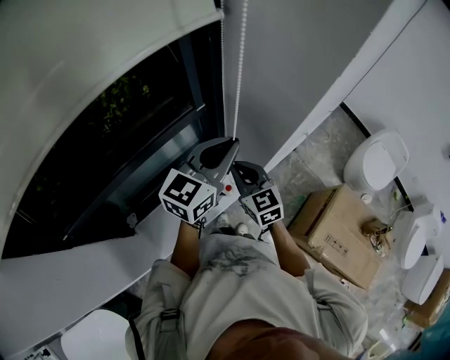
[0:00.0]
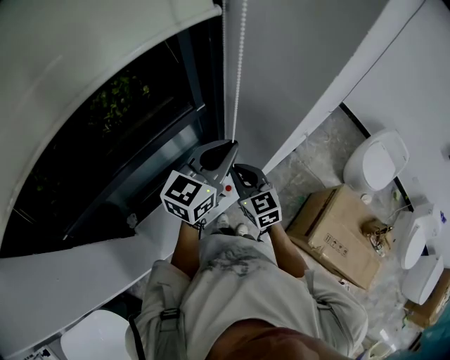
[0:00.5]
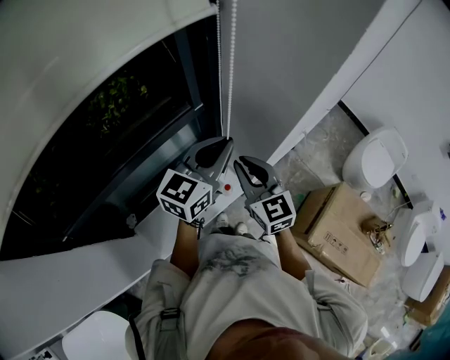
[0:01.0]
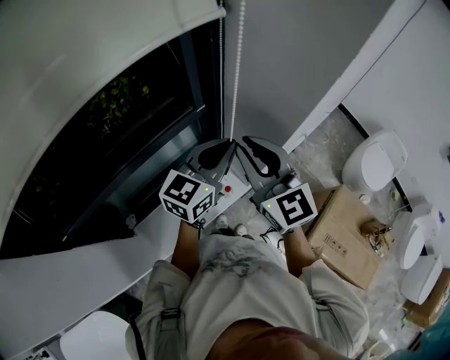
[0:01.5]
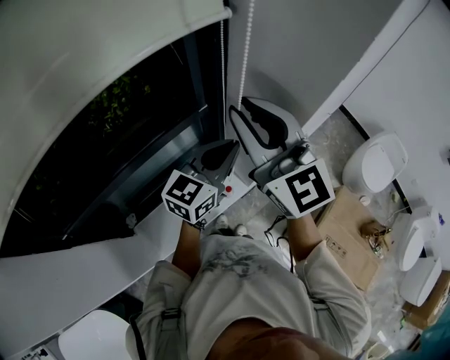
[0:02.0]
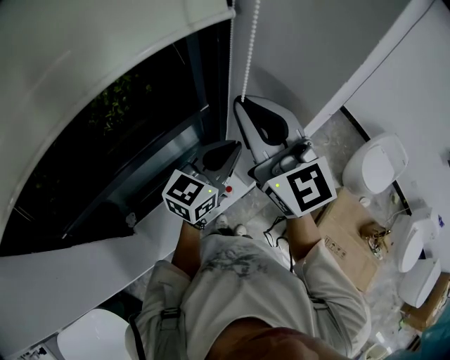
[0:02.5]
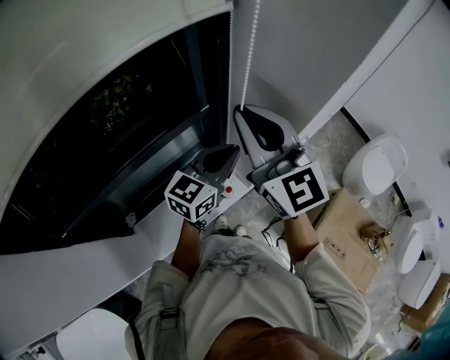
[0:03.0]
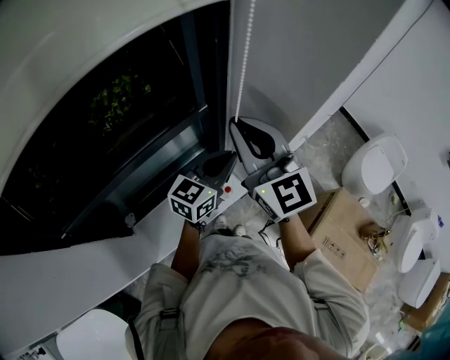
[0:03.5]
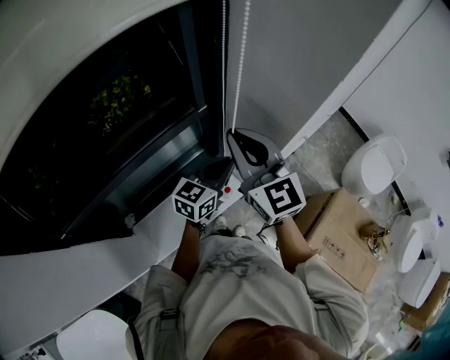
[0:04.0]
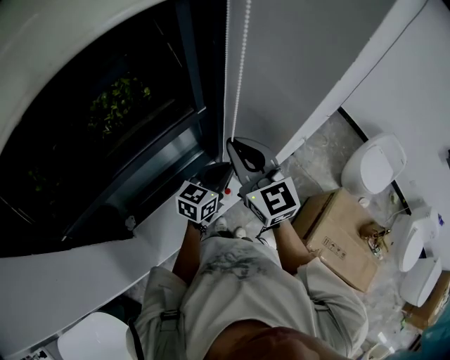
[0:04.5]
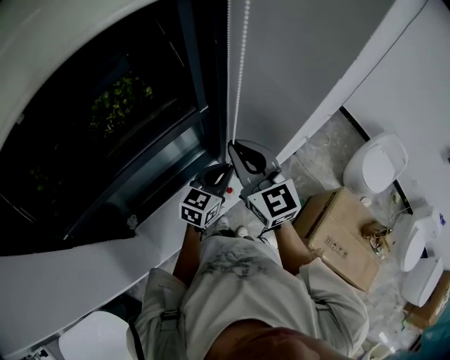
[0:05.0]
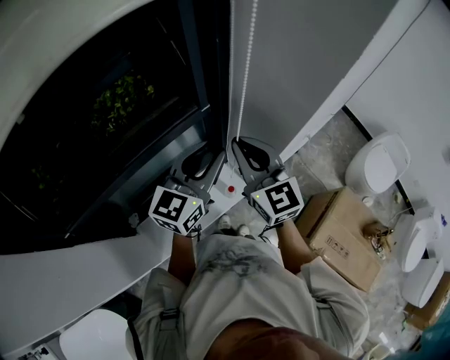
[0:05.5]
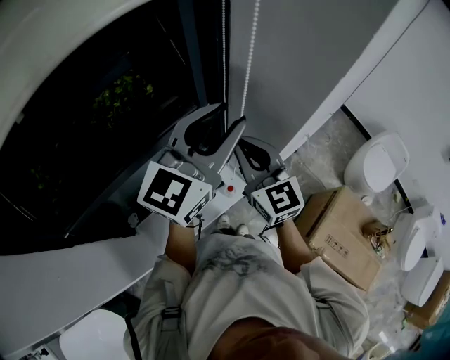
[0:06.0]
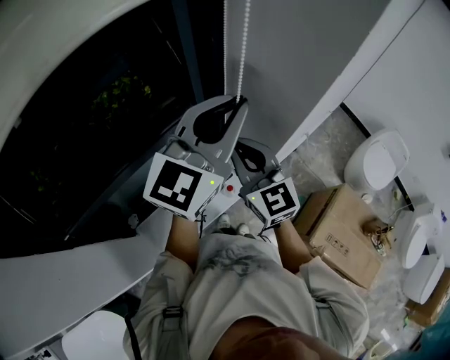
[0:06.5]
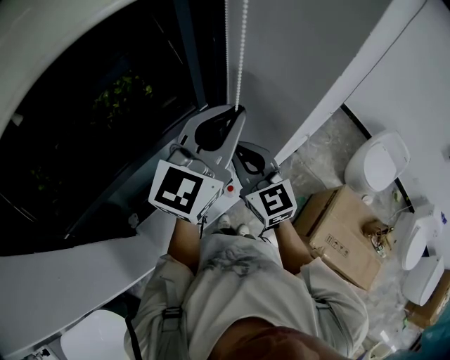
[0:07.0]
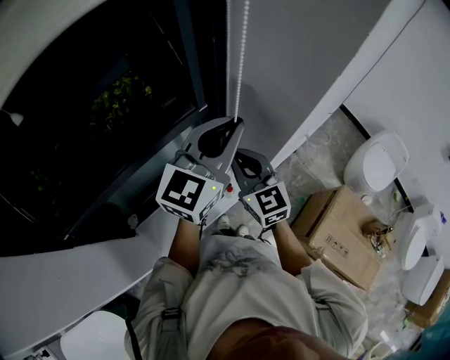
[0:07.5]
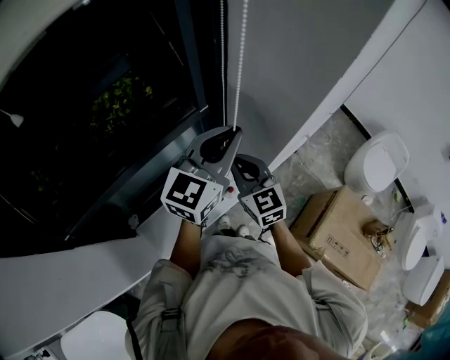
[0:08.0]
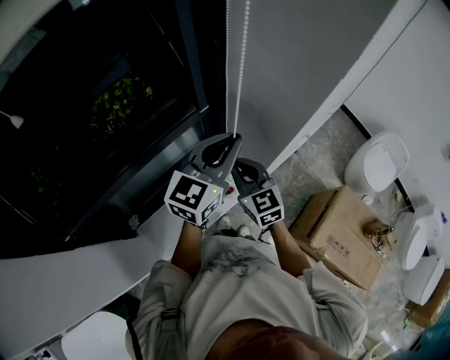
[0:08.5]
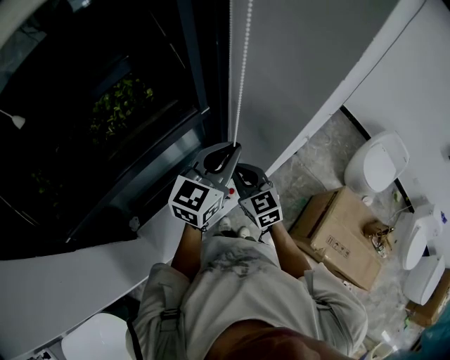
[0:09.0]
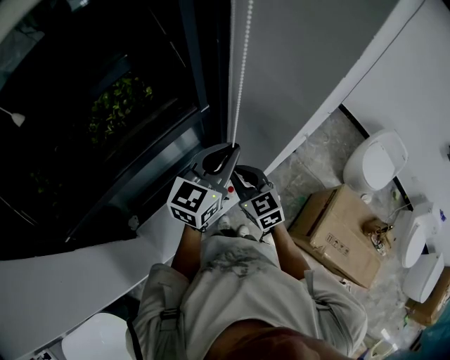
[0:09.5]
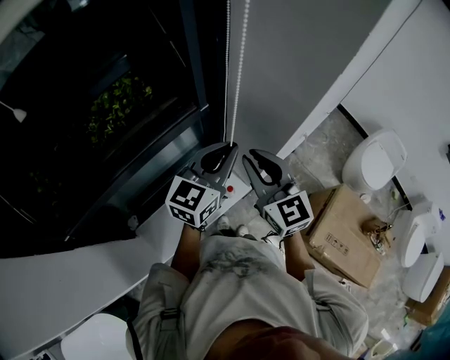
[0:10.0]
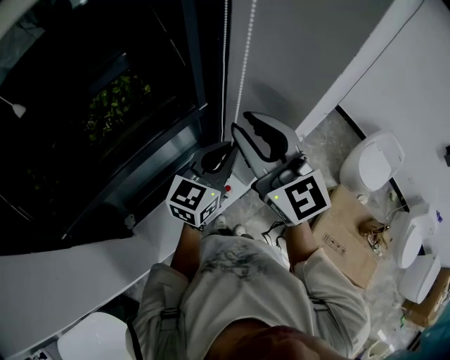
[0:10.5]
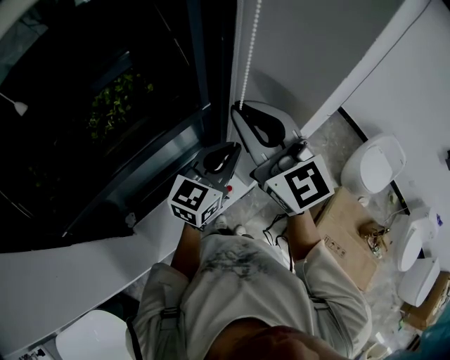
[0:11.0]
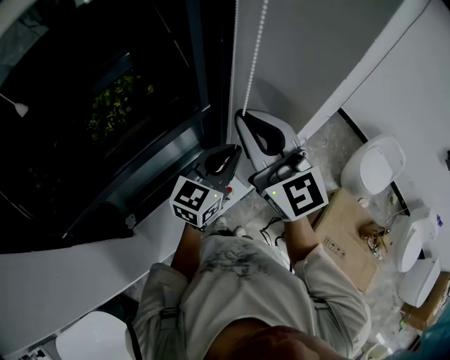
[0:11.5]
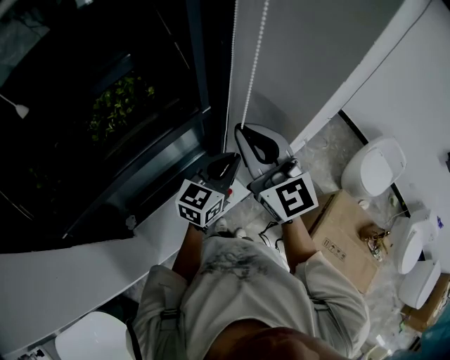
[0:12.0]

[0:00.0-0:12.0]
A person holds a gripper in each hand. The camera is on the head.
0:00.0 to 0:02.0: The right gripper travels upward by some 30 cm, and changes its angle by approximately 30 degrees.
0:02.0 to 0:04.0: The two grippers go roughly 10 cm downward.
0:04.0 to 0:06.0: The left gripper is displaced upward by about 25 cm, rotates about 30 degrees, and opens its fingers.
0:06.0 to 0:08.0: Both grippers travel together downward, some 10 cm. The left gripper closes its fingers.
0:08.0 to 0:10.0: The right gripper shifts about 5 cm upward. Meanwhile the left gripper is displaced downward by approximately 5 cm.
0:10.0 to 0:12.0: The right gripper goes some 10 cm upward; the left gripper goes some 5 cm downward.

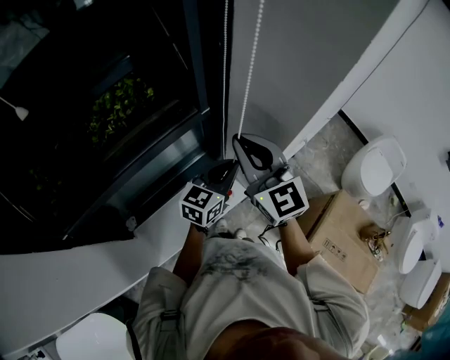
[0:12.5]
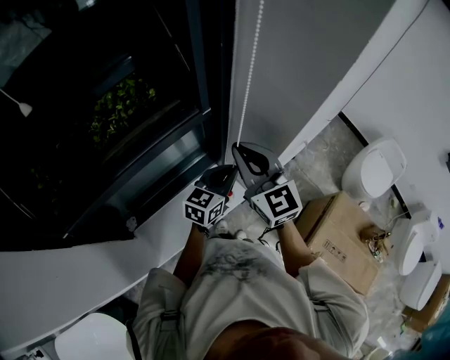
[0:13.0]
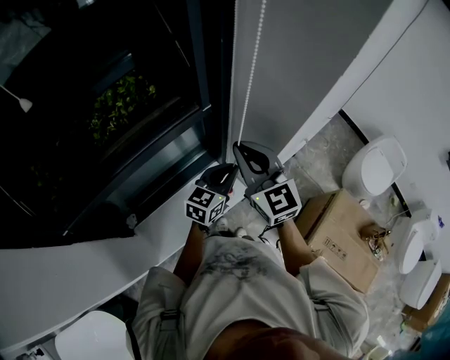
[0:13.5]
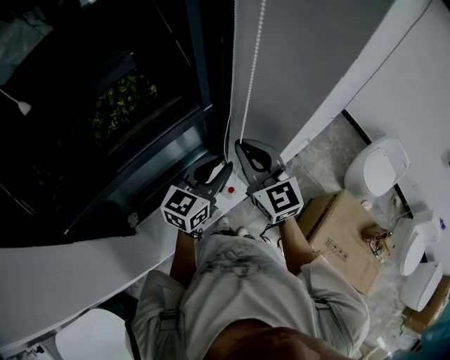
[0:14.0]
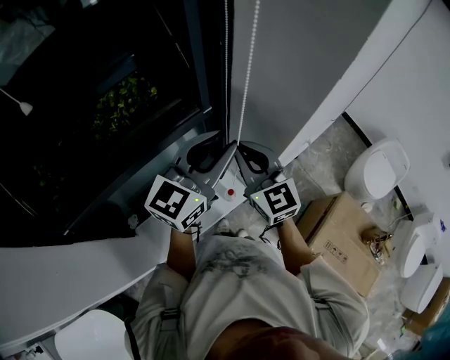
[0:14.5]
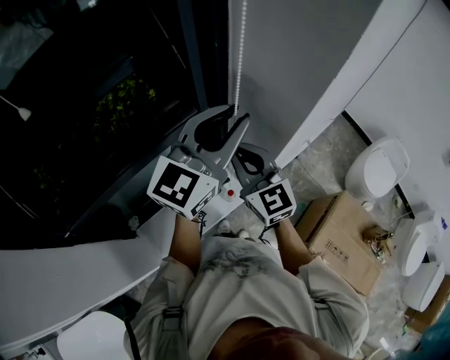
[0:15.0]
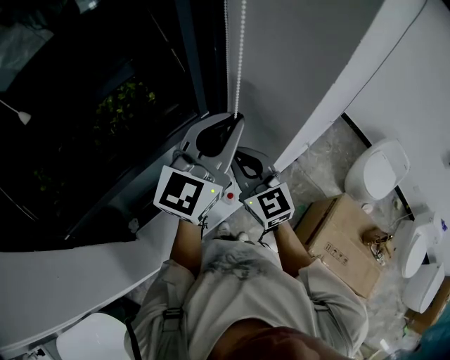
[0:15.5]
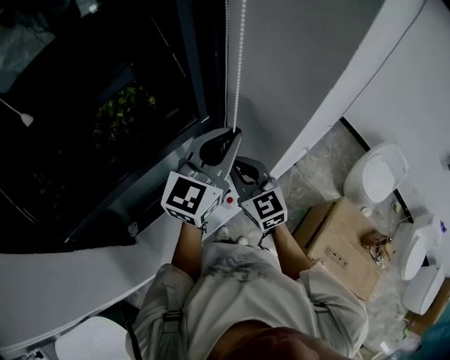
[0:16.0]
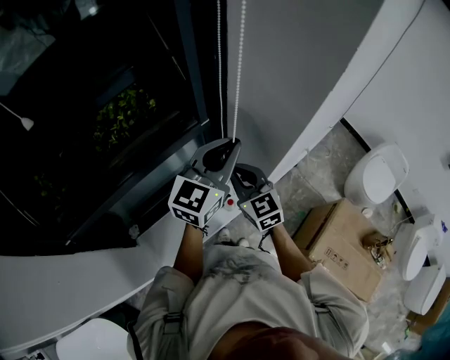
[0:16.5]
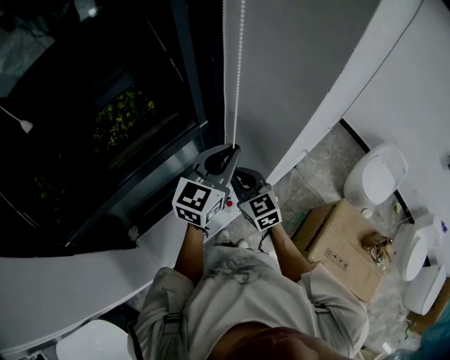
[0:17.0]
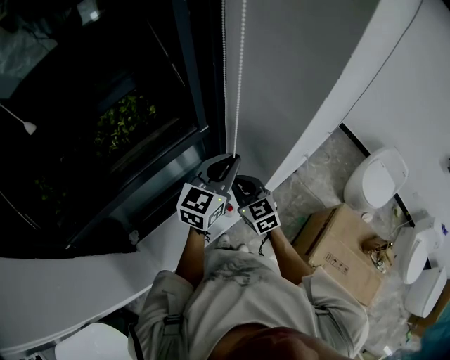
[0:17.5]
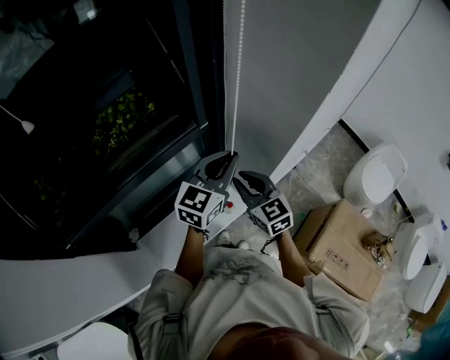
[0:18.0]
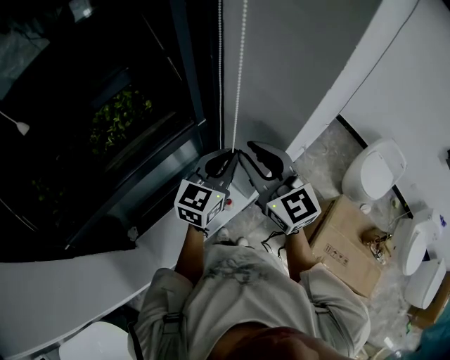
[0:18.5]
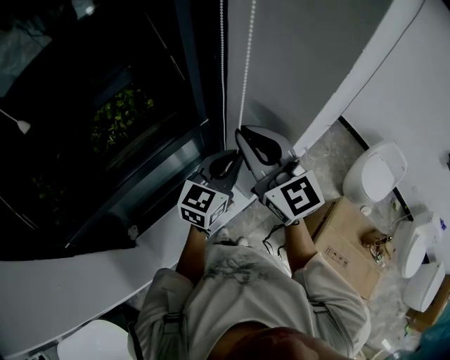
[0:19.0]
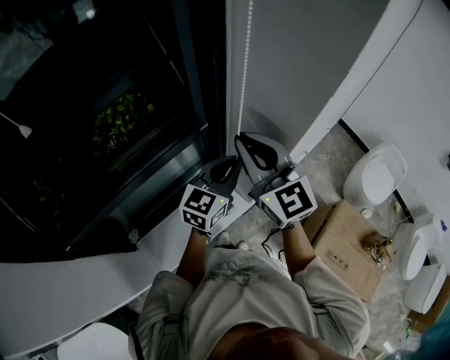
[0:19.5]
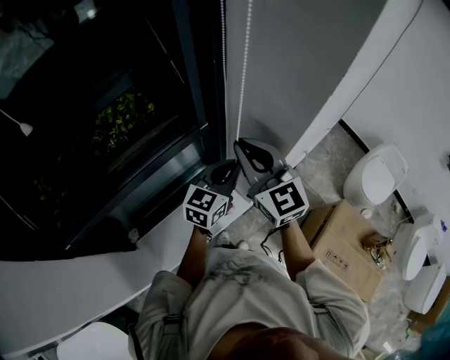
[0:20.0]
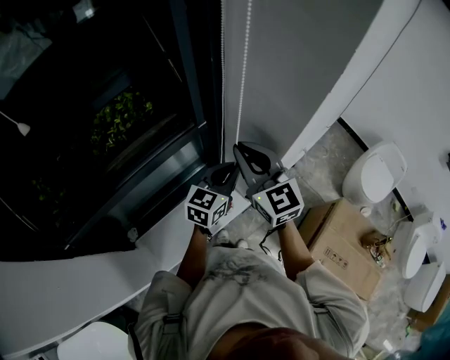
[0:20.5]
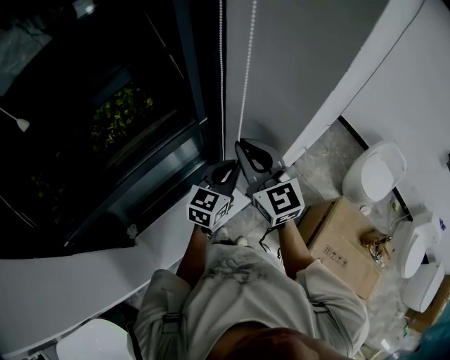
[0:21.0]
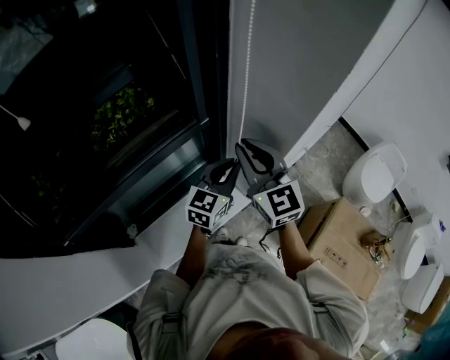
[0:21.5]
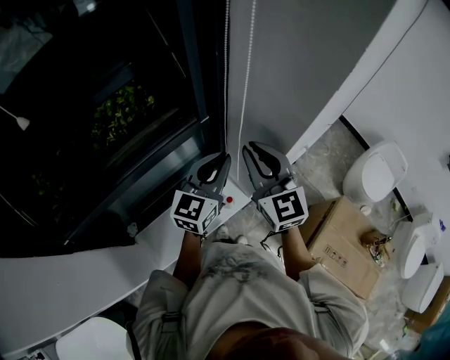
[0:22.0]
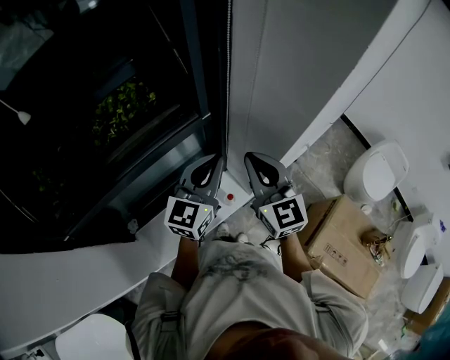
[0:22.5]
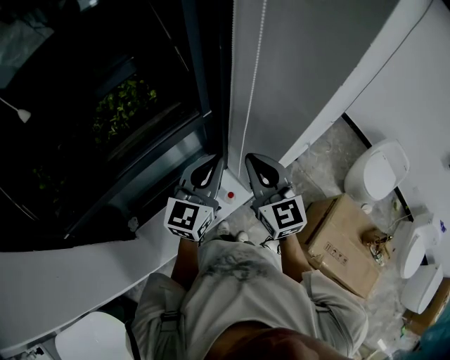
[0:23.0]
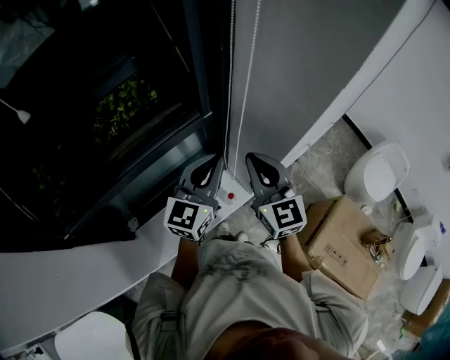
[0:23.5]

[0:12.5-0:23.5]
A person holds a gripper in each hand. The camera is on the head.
0:12.5 to 0:14.5: The left gripper travels upward by about 15 cm, and opens its fingers. The right gripper goes roughly 5 cm downward.
0:14.5 to 0:16.0: The left gripper closes its fingers.
0:16.0 to 0:18.0: The left gripper is displaced downward by about 10 cm. Meanwhile the right gripper goes approximately 5 cm downward.
0:18.0 to 0:20.0: The right gripper shifts about 15 cm upward. The left gripper shifts some 5 cm downward.
0:20.0 to 0:21.5: The grippers stay close to where they were, moving slightly.
0:21.5 to 0:23.5: The left gripper heads upward and to the left, covering roughly 10 cm.

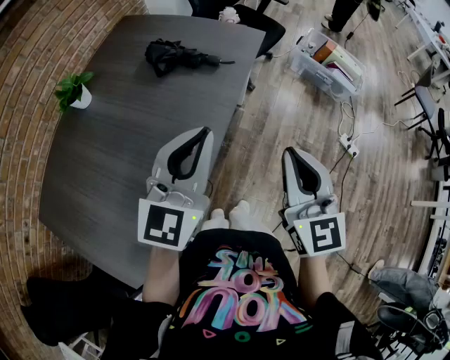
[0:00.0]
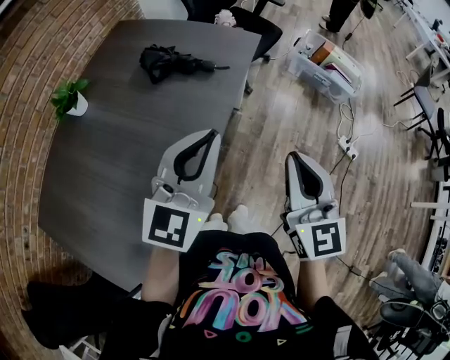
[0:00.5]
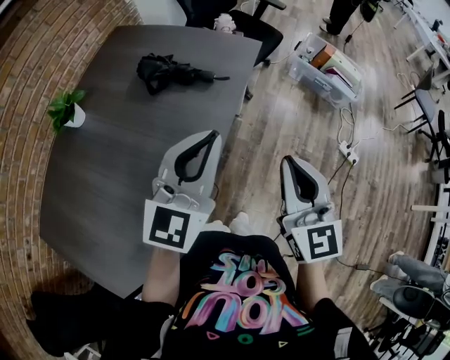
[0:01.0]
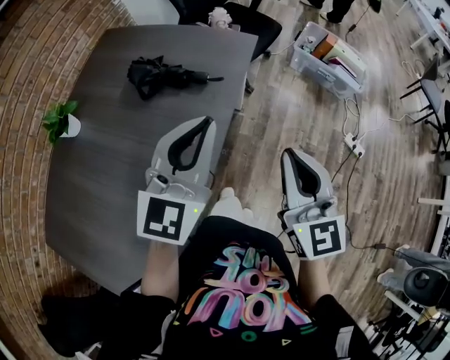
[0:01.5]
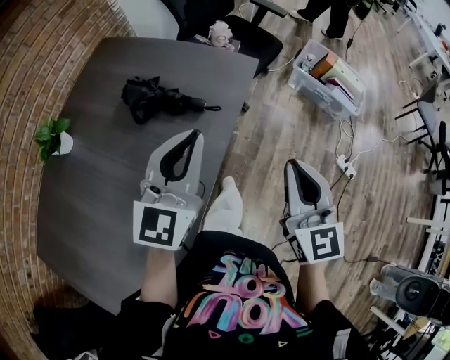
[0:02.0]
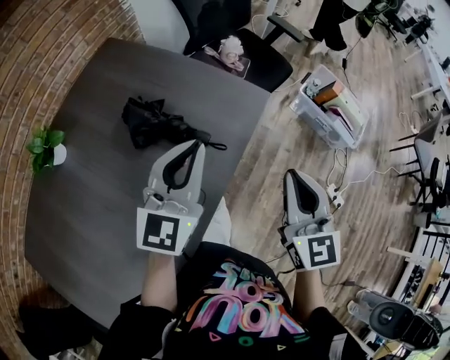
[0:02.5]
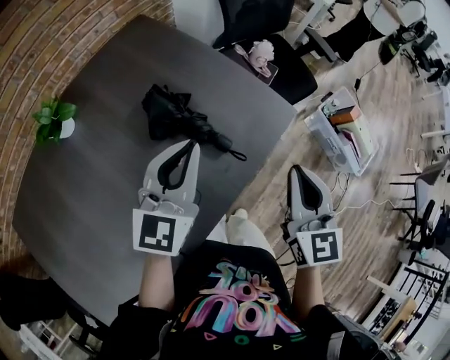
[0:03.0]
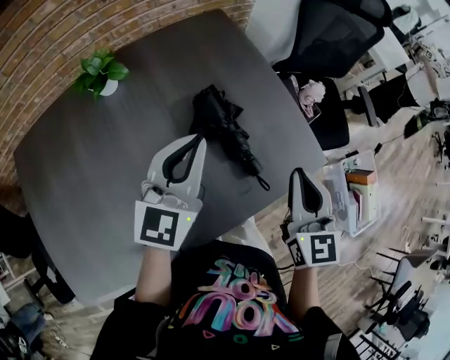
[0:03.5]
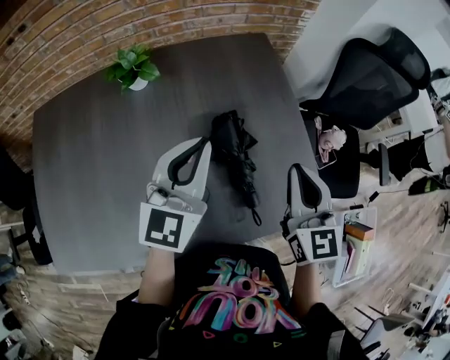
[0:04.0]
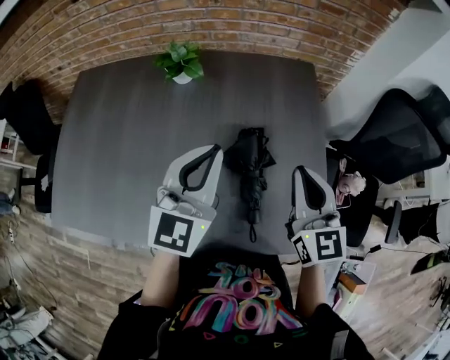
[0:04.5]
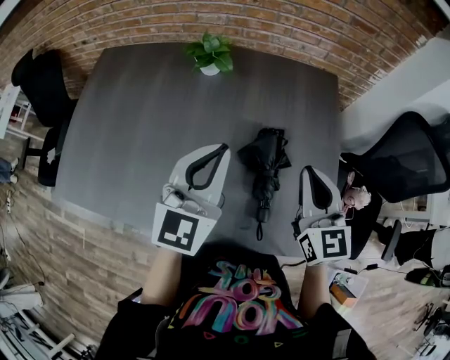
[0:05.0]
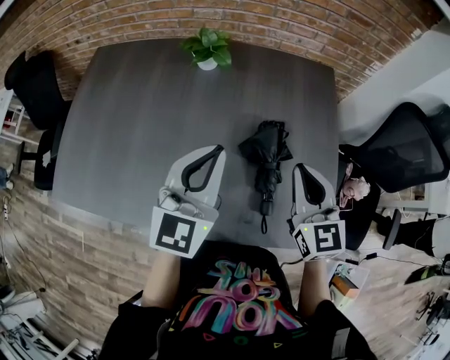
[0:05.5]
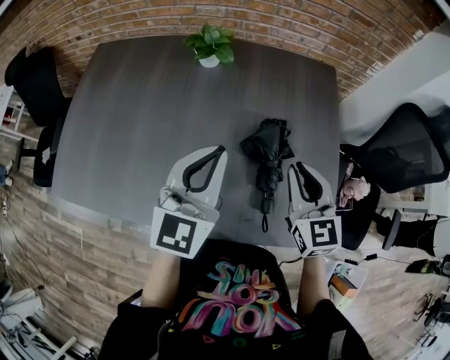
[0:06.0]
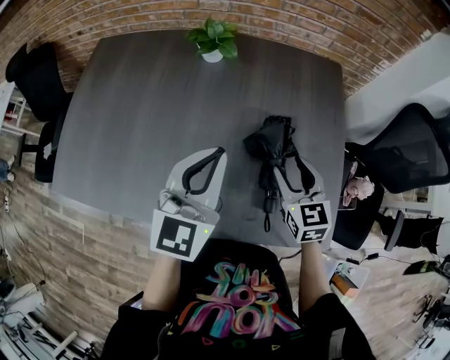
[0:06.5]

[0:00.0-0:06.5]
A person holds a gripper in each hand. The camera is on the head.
0:00.0 to 0:02.0: The grippers both shift forward by some 20 cm.
0:02.0 to 0:04.5: The left gripper changes place by approximately 25 cm, and rotates approximately 70 degrees, while the right gripper changes place by some 40 cm, and changes its angle by approximately 70 degrees.
0:04.5 to 0:06.5: The left gripper is displaced to the left by about 5 cm; the right gripper shifts some 15 cm downward and to the left, turns by some 20 degrees, and opens its fingers.
